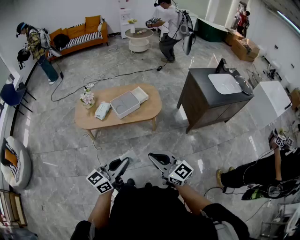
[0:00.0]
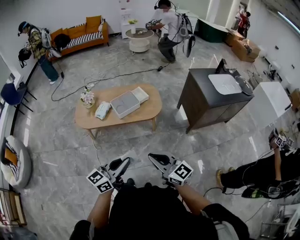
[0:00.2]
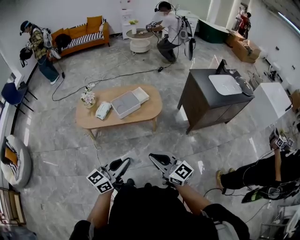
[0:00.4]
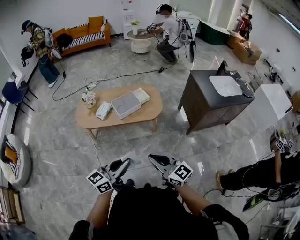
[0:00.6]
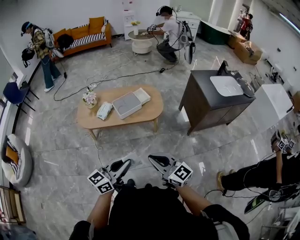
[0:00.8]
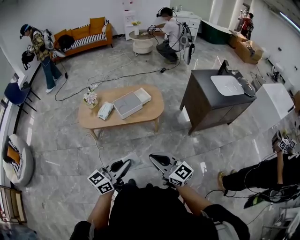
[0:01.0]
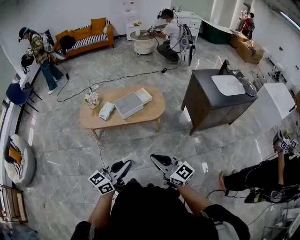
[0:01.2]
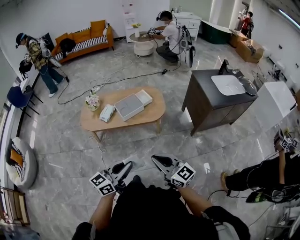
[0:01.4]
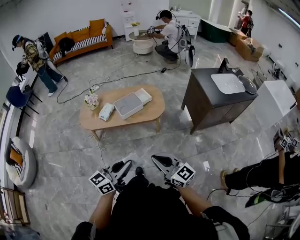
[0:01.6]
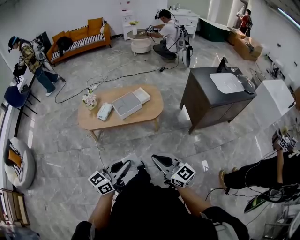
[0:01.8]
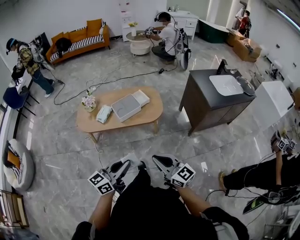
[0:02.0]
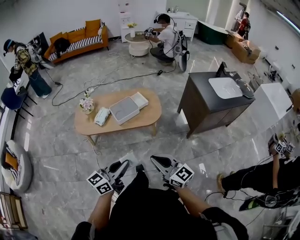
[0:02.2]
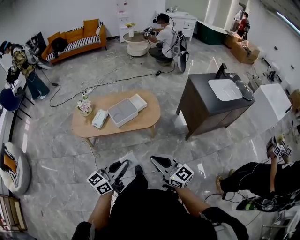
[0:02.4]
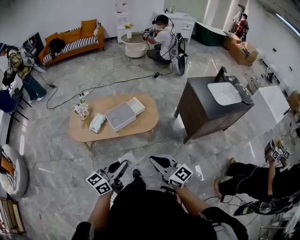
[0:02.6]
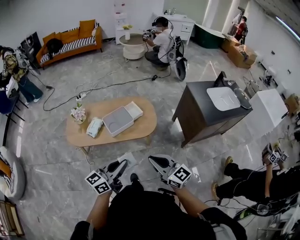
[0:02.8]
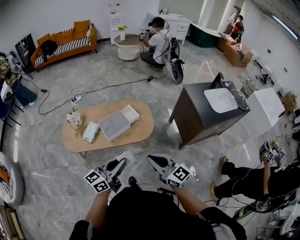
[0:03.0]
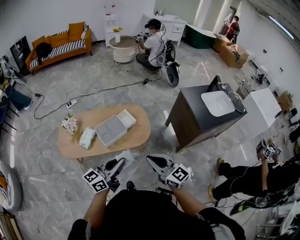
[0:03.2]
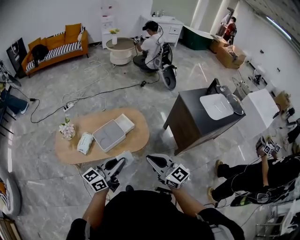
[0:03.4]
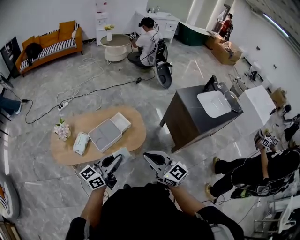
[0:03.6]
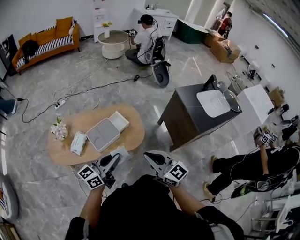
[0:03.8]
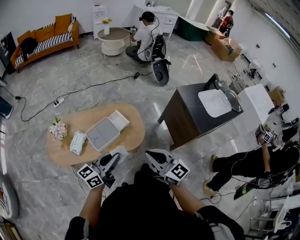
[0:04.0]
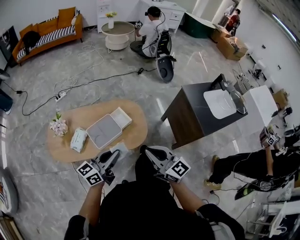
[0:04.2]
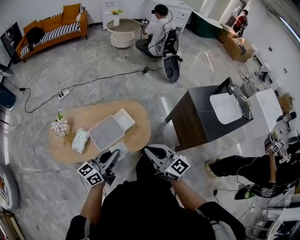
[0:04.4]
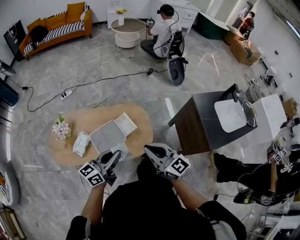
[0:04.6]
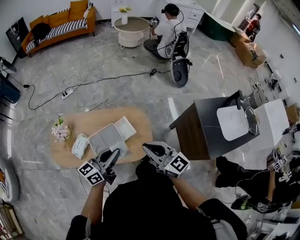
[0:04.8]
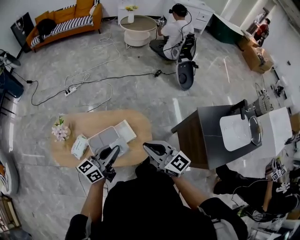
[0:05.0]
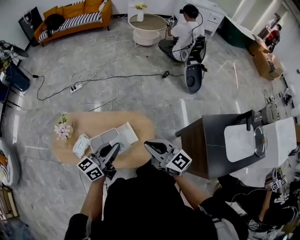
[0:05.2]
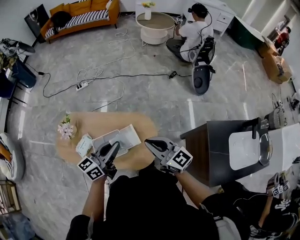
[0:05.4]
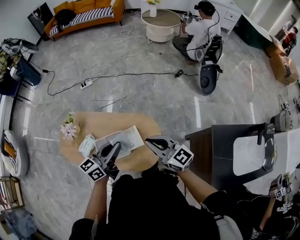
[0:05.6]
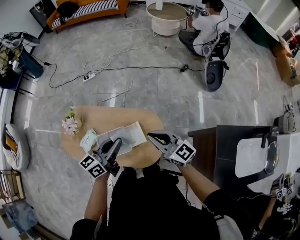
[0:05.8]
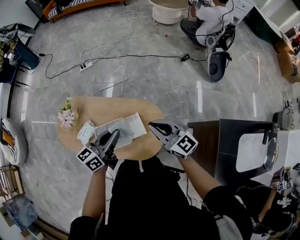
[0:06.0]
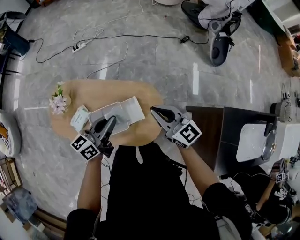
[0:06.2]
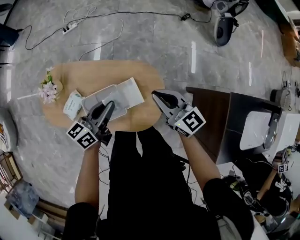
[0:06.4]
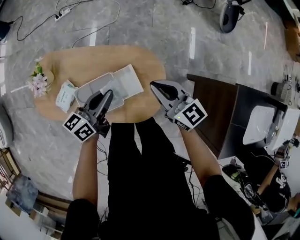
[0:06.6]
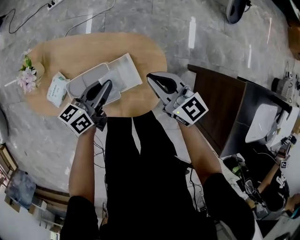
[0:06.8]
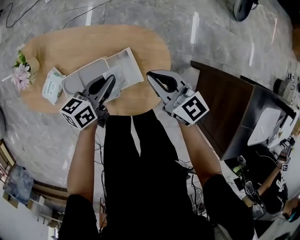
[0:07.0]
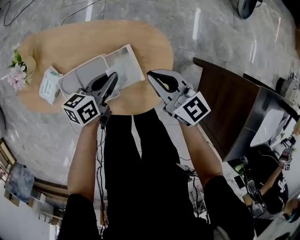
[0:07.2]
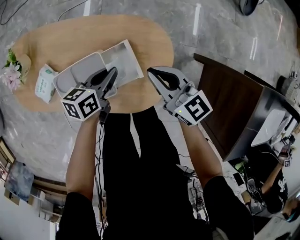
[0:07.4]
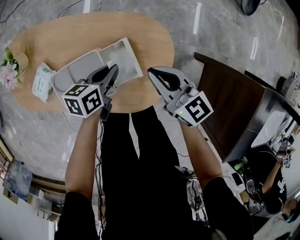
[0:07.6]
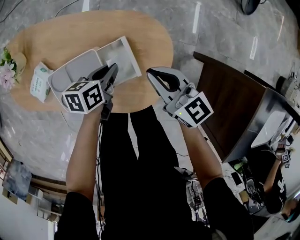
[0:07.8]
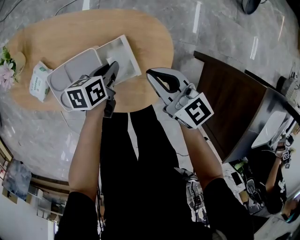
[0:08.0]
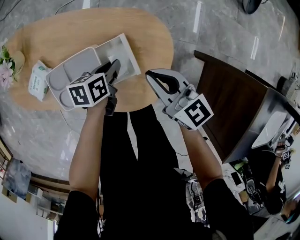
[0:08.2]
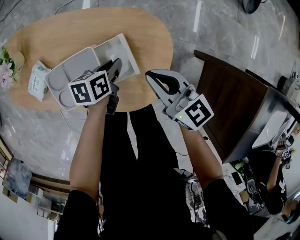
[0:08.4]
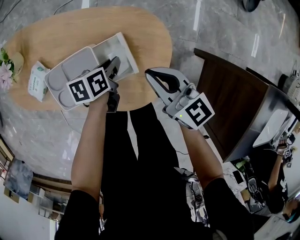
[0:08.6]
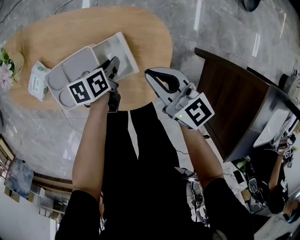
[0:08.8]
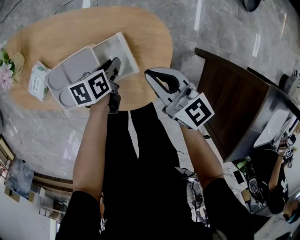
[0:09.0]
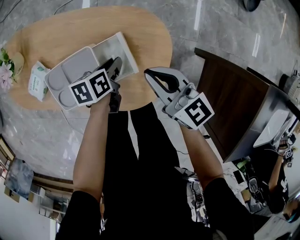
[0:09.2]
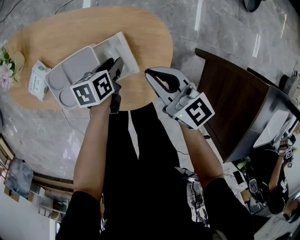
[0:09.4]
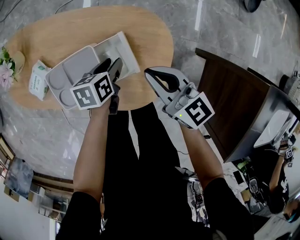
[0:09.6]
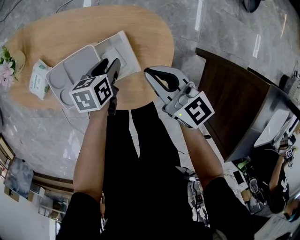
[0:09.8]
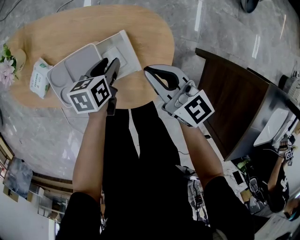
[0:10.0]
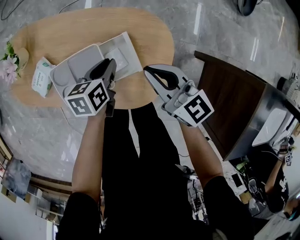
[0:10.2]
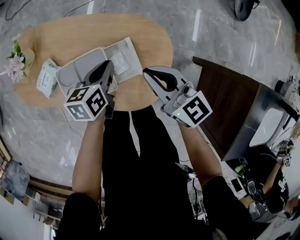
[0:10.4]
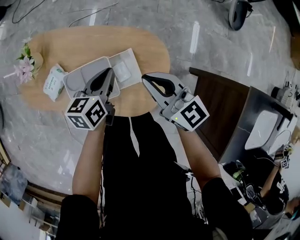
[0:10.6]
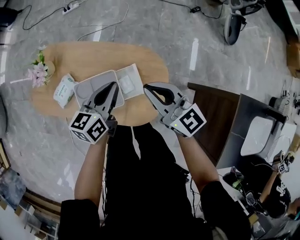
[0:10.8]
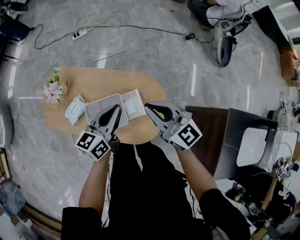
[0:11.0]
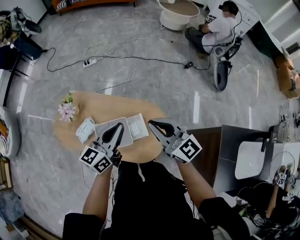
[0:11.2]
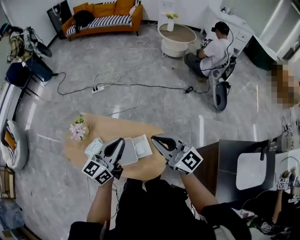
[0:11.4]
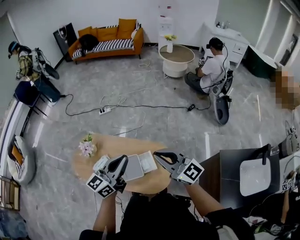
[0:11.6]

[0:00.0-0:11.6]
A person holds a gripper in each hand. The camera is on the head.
0:00.0 to 0:01.4: The grippers make only small movements.
0:01.4 to 0:02.8: Both grippers move forward, about 20 cm.
0:02.8 to 0:04.4: The grippers both shift forward by about 30 cm.
0:04.4 to 0:05.8: The grippers both shift forward by roughly 30 cm. The left gripper changes its angle by roughly 20 degrees. The right gripper changes its angle by some 20 degrees.
0:05.8 to 0:07.2: The grippers both shift downward by about 30 cm. The left gripper swivels roughly 30 degrees.
0:07.2 to 0:08.8: The left gripper moves downward, about 10 cm, and swivels some 20 degrees.
0:08.8 to 0:10.2: The left gripper goes roughly 5 cm upward, and opens, then closes again.
0:10.2 to 0:11.6: Both grippers travel together upward, some 50 cm. The right gripper swivels roughly 30 degrees, while the left gripper tips its fingers upward by roughly 50 degrees.

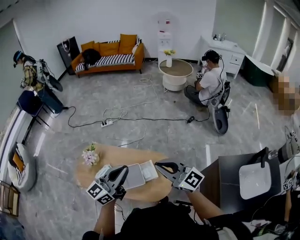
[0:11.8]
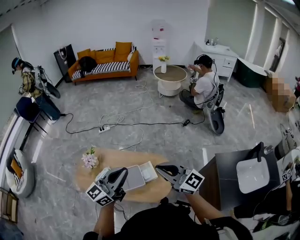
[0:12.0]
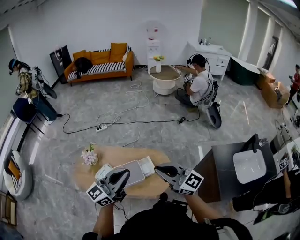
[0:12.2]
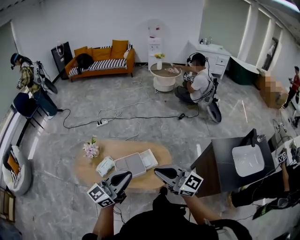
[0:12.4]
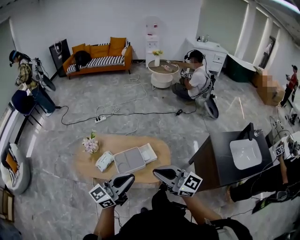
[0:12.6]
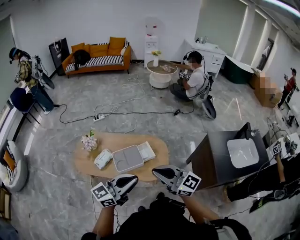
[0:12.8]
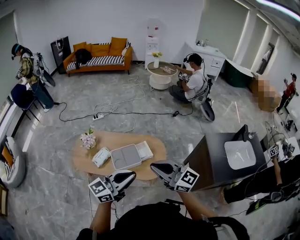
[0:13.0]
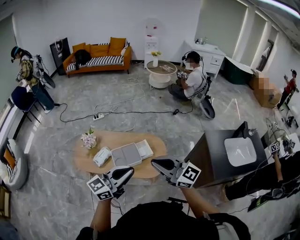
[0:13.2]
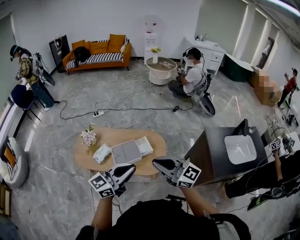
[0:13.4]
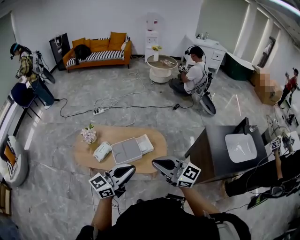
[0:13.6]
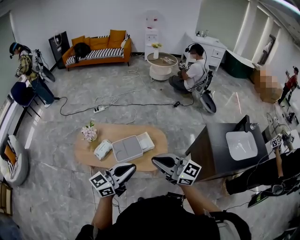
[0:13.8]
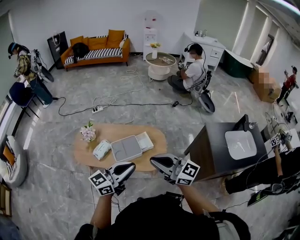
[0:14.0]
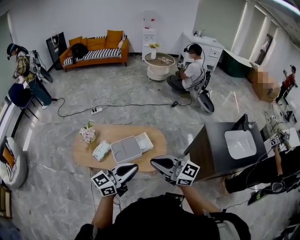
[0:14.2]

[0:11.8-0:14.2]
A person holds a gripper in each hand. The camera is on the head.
0:11.8 to 0:13.0: The grippers both shift backward by approximately 25 cm.
0:13.0 to 0:14.2: The grippers make only small movements.

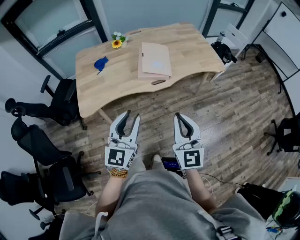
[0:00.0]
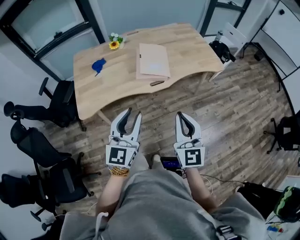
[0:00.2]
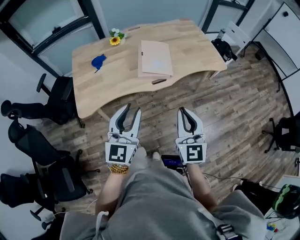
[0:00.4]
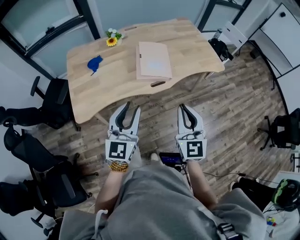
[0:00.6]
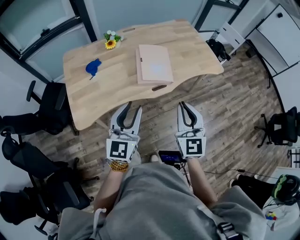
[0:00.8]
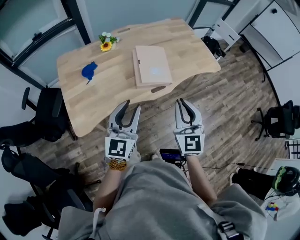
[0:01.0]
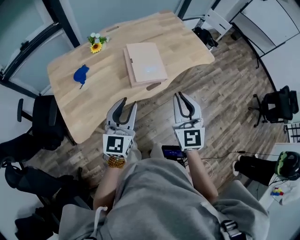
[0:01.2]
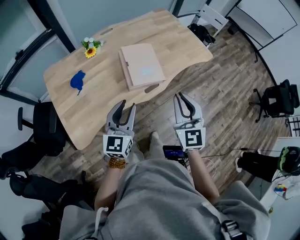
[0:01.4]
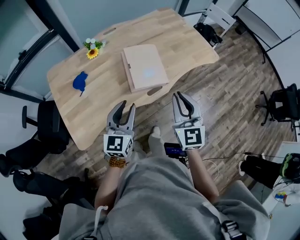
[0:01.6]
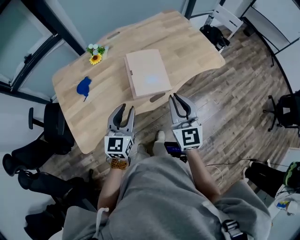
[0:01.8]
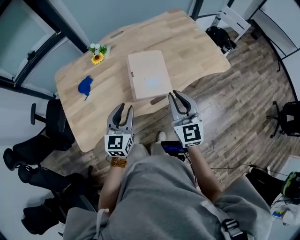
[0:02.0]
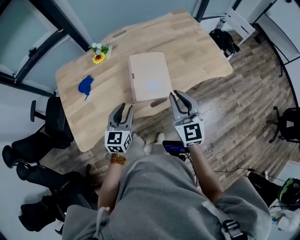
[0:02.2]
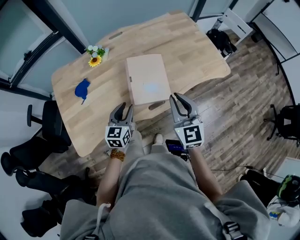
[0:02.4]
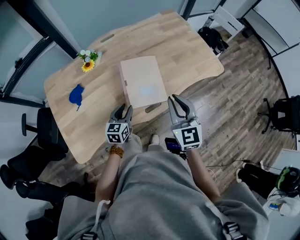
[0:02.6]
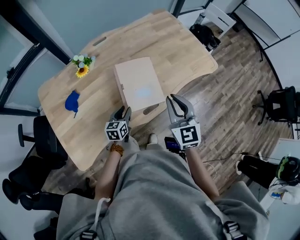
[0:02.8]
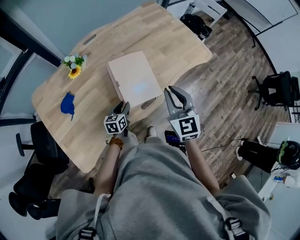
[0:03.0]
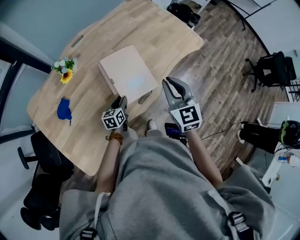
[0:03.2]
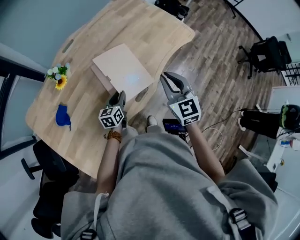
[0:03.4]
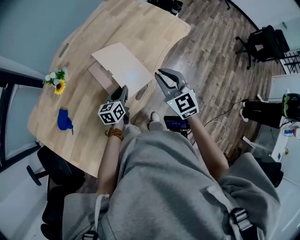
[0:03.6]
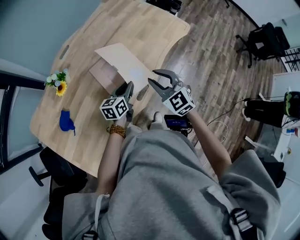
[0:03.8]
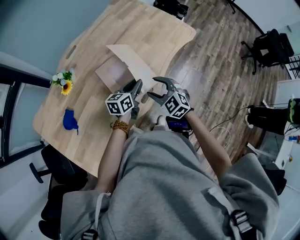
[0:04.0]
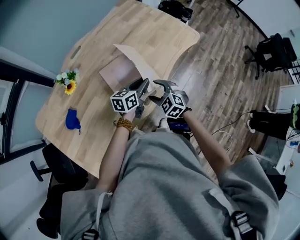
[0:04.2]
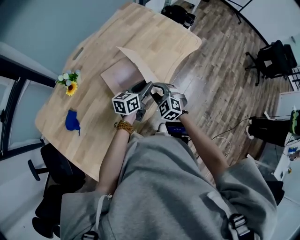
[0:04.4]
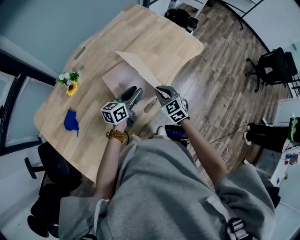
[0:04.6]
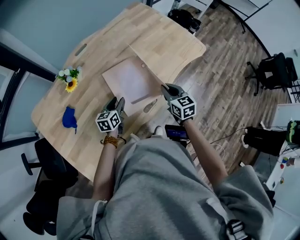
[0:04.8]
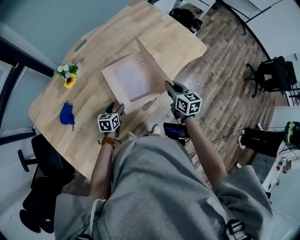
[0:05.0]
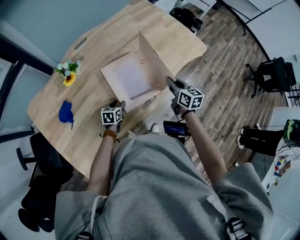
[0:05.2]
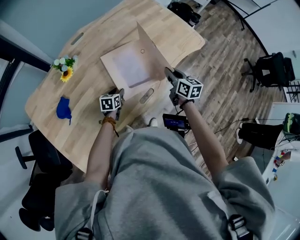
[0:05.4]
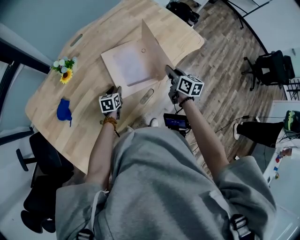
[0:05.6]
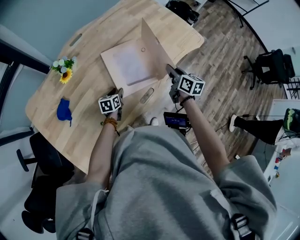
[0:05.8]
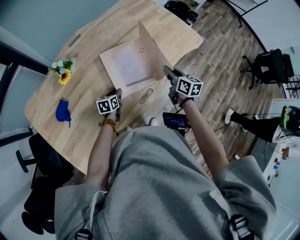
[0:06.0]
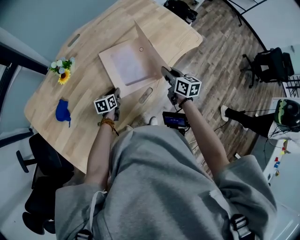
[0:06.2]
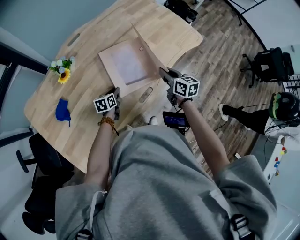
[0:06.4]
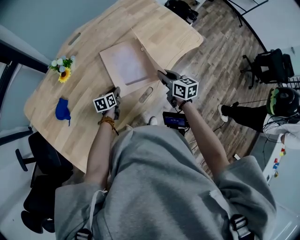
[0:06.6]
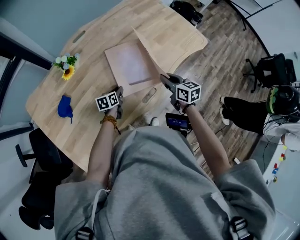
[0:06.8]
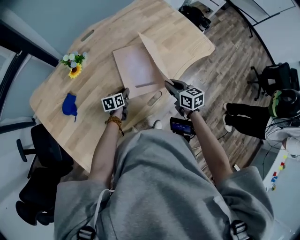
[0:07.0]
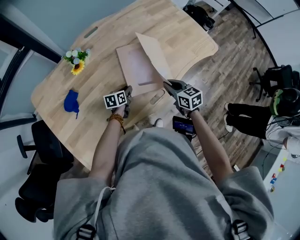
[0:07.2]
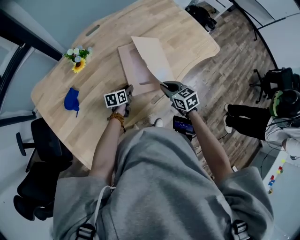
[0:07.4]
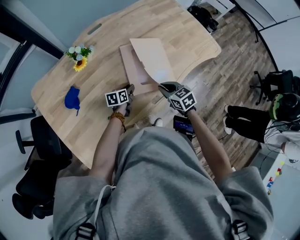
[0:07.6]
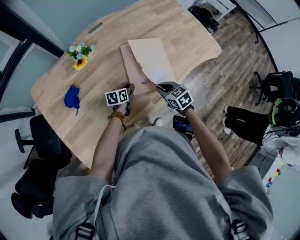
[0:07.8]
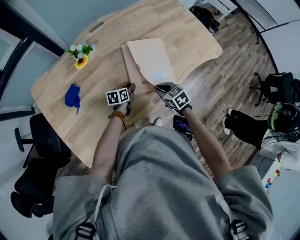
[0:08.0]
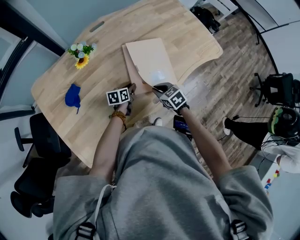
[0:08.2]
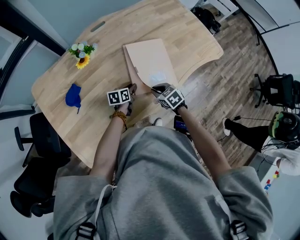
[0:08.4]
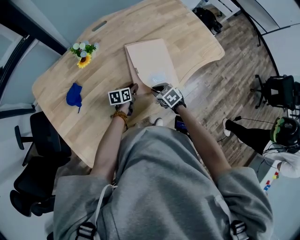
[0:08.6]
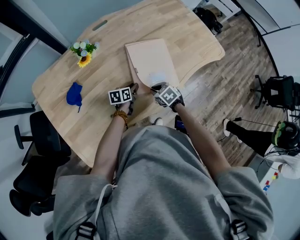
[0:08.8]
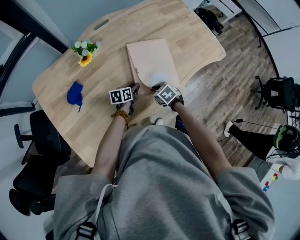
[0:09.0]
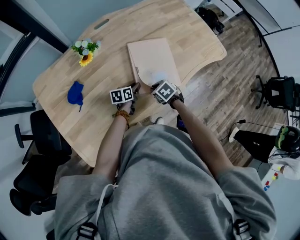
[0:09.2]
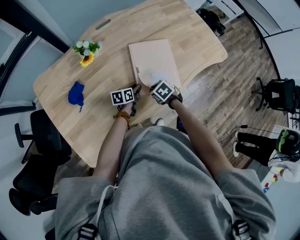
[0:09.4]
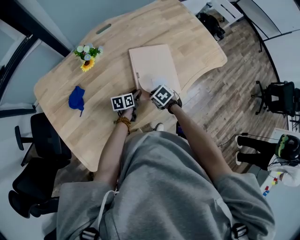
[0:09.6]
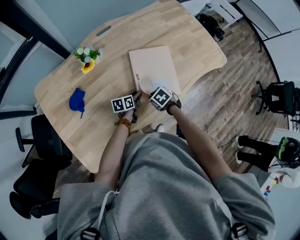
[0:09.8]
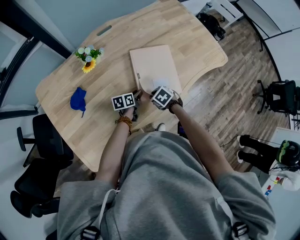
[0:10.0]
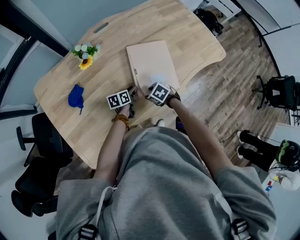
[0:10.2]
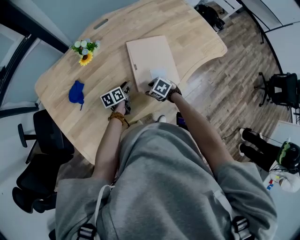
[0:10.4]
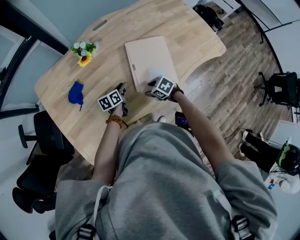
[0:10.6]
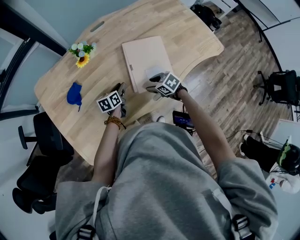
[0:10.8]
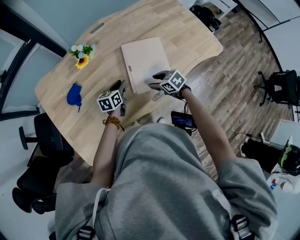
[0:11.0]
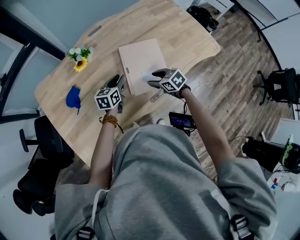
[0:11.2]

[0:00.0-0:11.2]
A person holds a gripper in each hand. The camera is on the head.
0:00.0 to 0:01.6: The right gripper travels forward by roughly 25 cm. The left gripper moves forward and to the left, some 25 cm.
0:01.6 to 0:03.2: The right gripper goes some 15 cm forward. The left gripper heads downward and forward, covering about 35 cm, and swivels approximately 40 degrees.
0:03.2 to 0:04.8: The left gripper goes to the right and returns, roughly 15 cm each way, while the right gripper heads downward, covering about 15 cm, turns by about 20 degrees, and opens and closes again.
0:04.8 to 0:06.4: The left gripper goes roughly 10 cm downward.
0:06.4 to 0:08.0: The right gripper heads to the left and downward, covering some 15 cm, and turns by approximately 40 degrees.
0:08.0 to 0:09.6: The right gripper heads downward, covering approximately 5 cm, and rotates roughly 20 degrees.
0:09.6 to 0:11.2: The left gripper travels upward by approximately 15 cm, and swivels roughly 30 degrees. Meanwhile the right gripper goes some 10 cm upward and to the right, rotates about 20 degrees, and opens its fingers.
